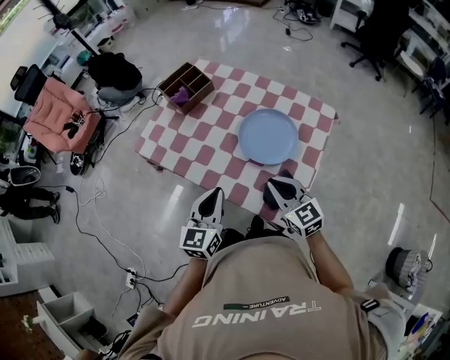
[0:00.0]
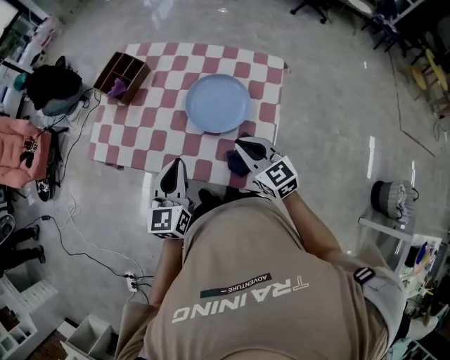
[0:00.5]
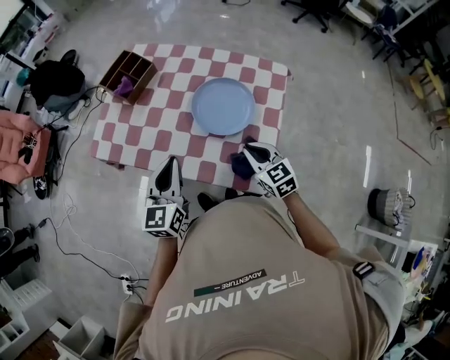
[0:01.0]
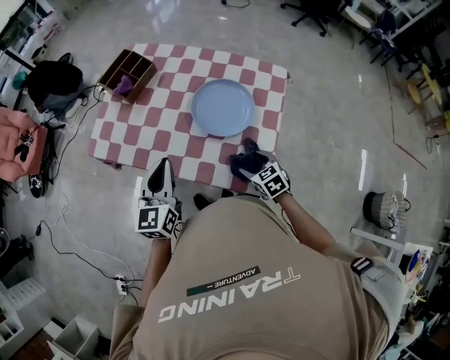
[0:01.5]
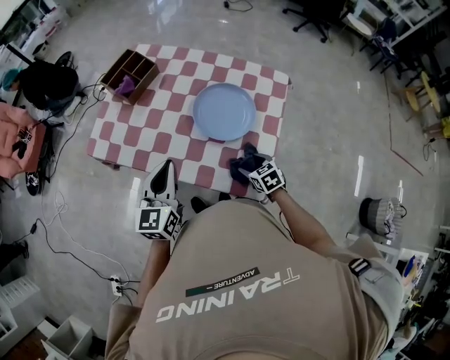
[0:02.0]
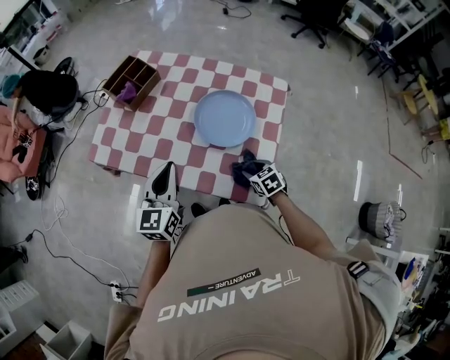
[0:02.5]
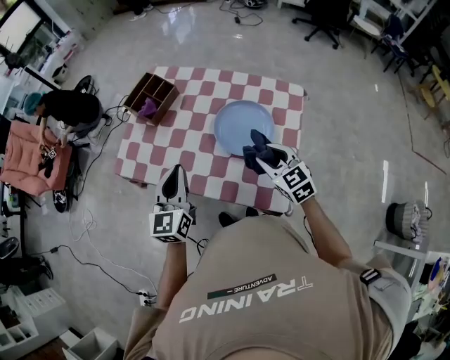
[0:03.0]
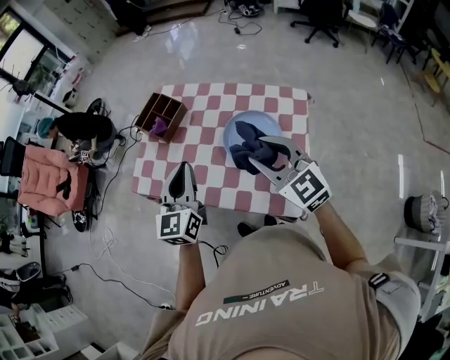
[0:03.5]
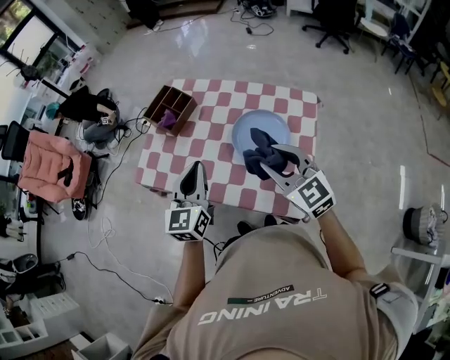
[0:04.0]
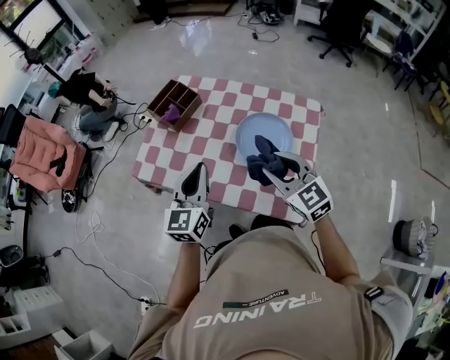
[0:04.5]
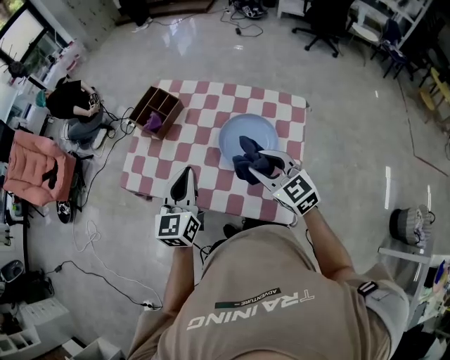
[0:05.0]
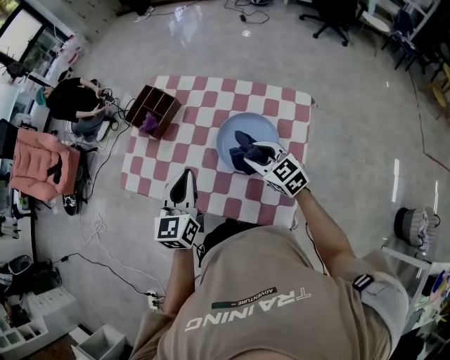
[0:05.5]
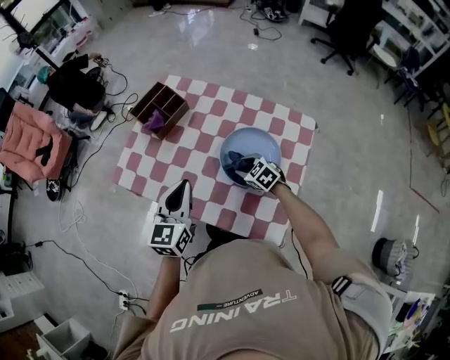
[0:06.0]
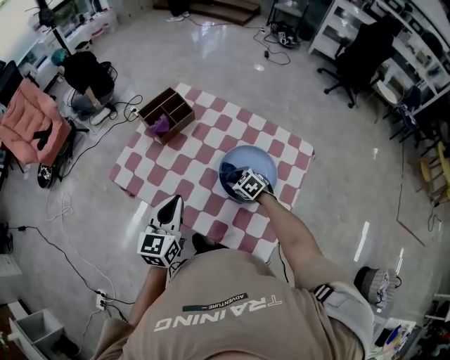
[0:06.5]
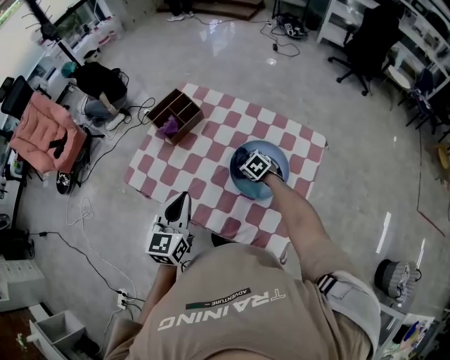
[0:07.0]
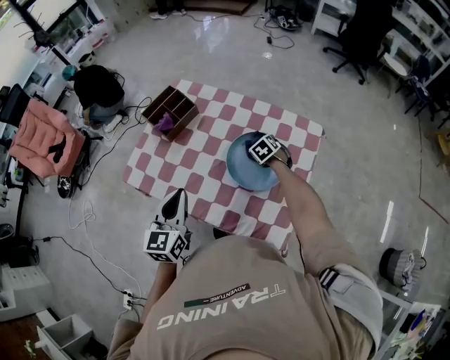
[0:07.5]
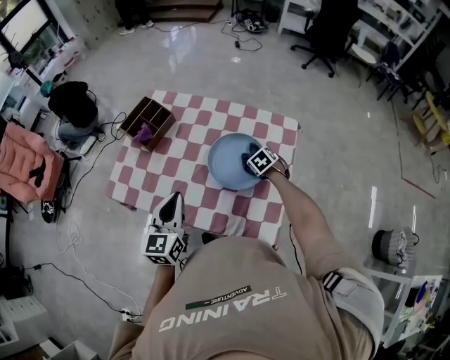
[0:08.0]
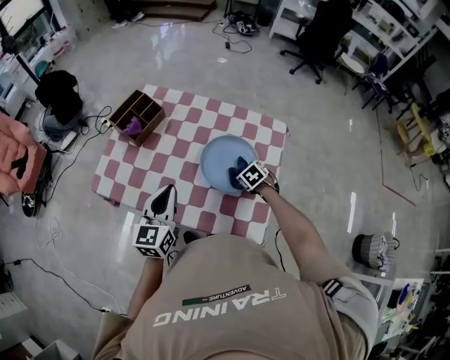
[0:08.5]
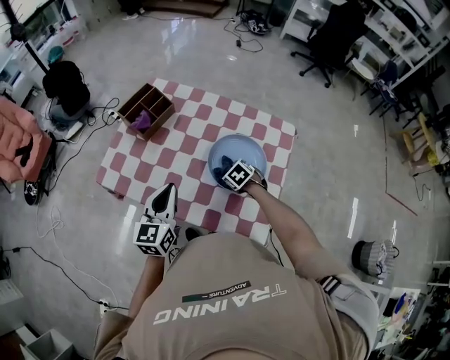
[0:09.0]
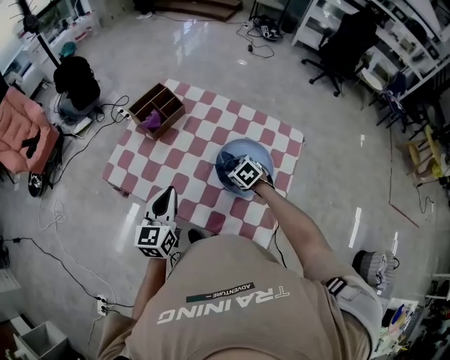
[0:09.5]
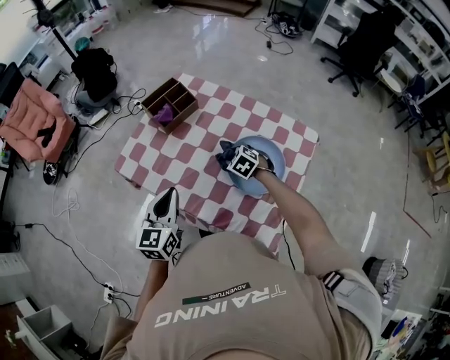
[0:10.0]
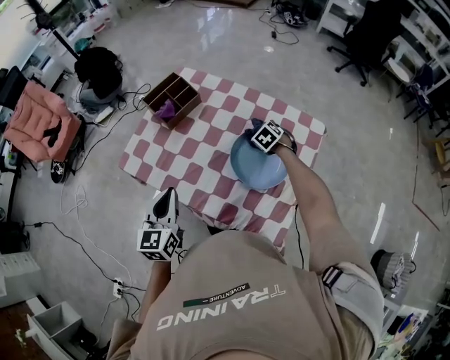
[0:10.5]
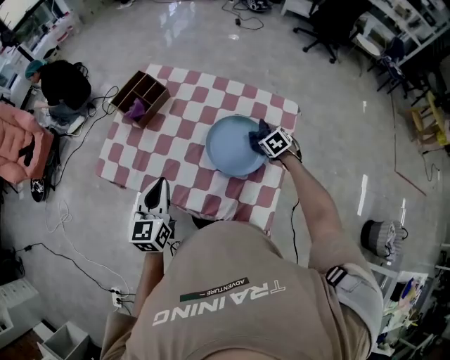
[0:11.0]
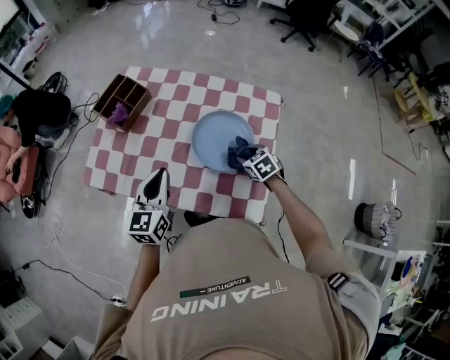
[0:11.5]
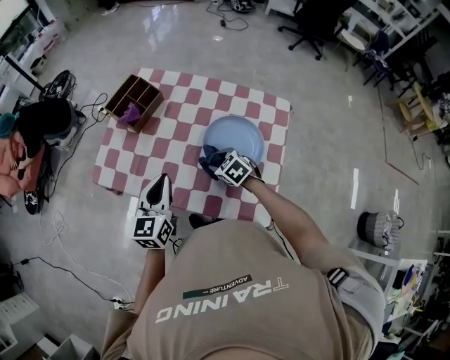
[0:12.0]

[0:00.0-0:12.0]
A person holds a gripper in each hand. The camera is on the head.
0:00.0 to 0:02.0: The left gripper travels forward by some 5 cm; the right gripper is displaced downward by some 20 cm, tips its fingers downward by approximately 40 degrees, and opens up.
0:02.0 to 0:04.0: The left gripper goes some 10 cm upward and forward. The right gripper is displaced upward by about 30 cm, tips its fingers upward by approximately 40 degrees, and closes its fingers.
0:04.0 to 0:06.0: The right gripper is displaced downward and forward by approximately 30 cm, and angles its fingers downward, by roughly 40 degrees. Meanwhile the left gripper goes roughly 5 cm downward.
0:06.0 to 0:08.0: The right gripper moves to the right, approximately 15 cm, and rotates approximately 30 degrees.
0:08.0 to 0:10.0: The right gripper travels to the left by about 20 cm, and swivels some 30 degrees. Meanwhile the left gripper heads to the left, covering roughly 5 cm.
0:10.0 to 0:12.0: The right gripper goes some 10 cm backward, reaches some 20 cm to the right, then returns, and swivels some 20 degrees.

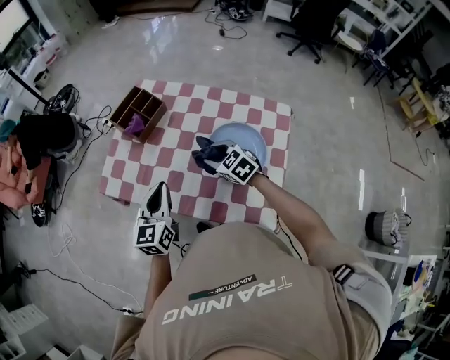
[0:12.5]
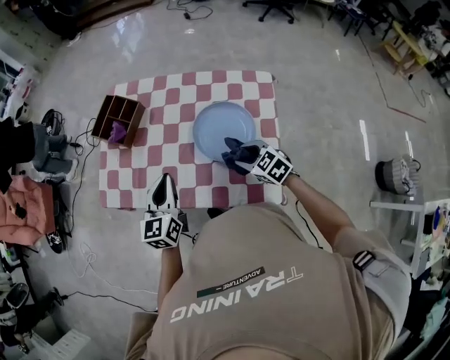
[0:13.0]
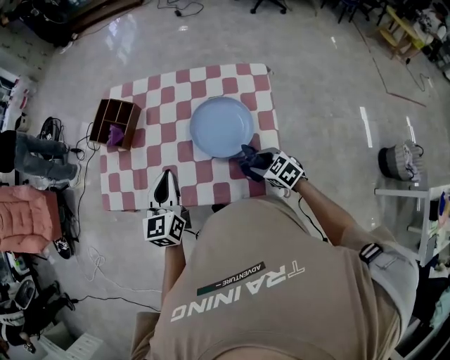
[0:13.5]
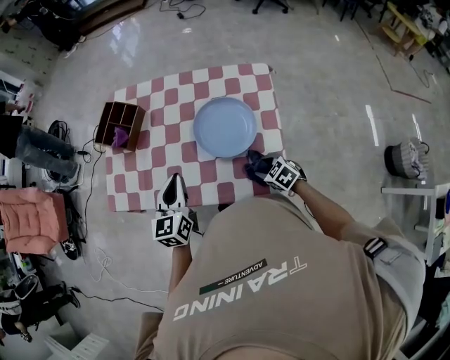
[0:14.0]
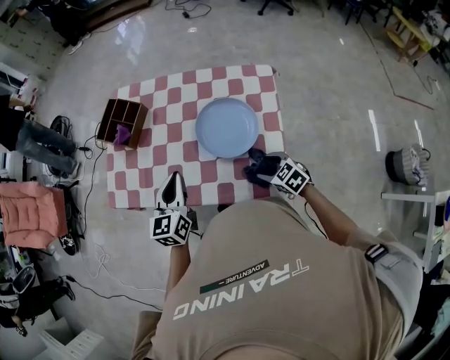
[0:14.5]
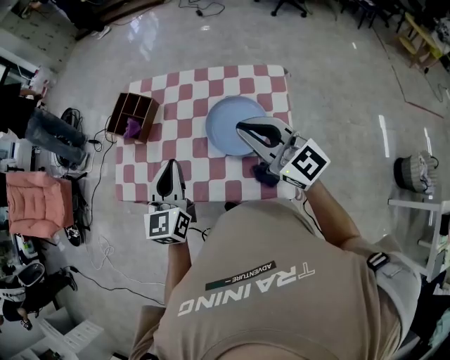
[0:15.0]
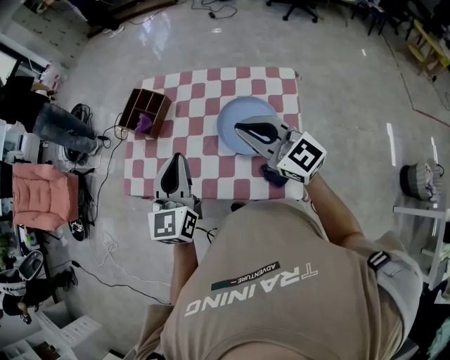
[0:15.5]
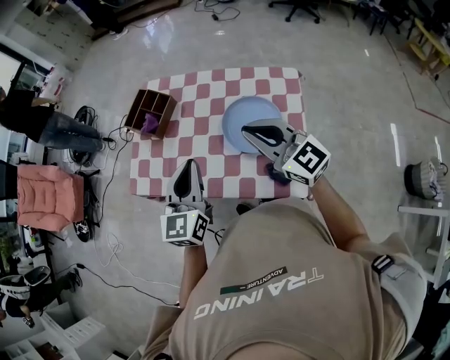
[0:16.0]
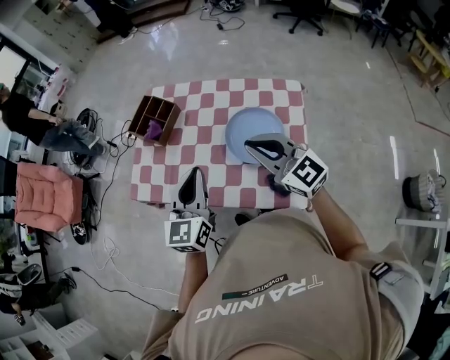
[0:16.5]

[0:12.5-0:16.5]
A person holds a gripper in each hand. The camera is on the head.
0:12.5 to 0:14.5: The right gripper shifts roughly 25 cm backward, to the right and downward, and turns by about 20 degrees, while the left gripper shifts some 5 cm to the right.
0:14.5 to 0:16.5: The left gripper heads upward, covering roughly 10 cm, while the right gripper heads upward, covering about 30 cm, angles its fingers upward, by some 50 degrees, and closes its fingers.

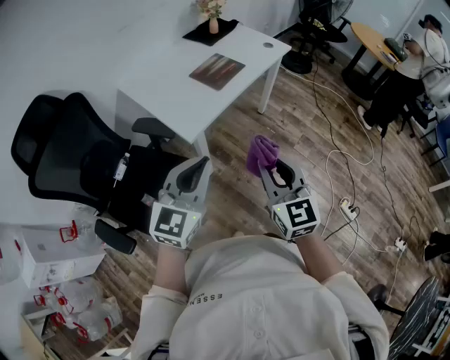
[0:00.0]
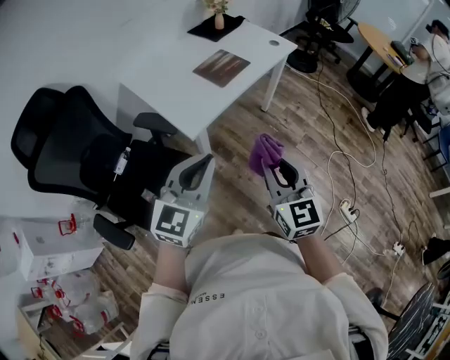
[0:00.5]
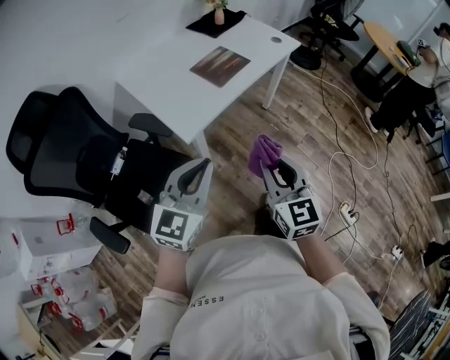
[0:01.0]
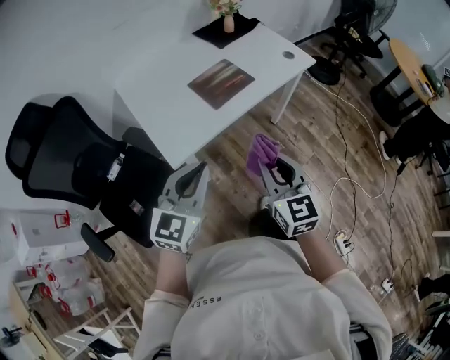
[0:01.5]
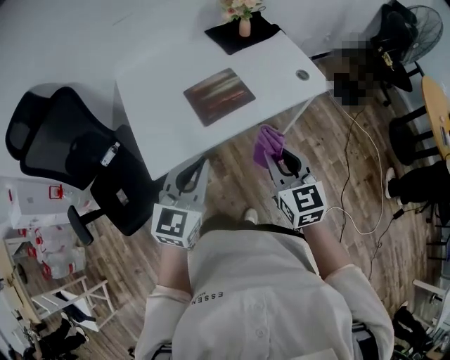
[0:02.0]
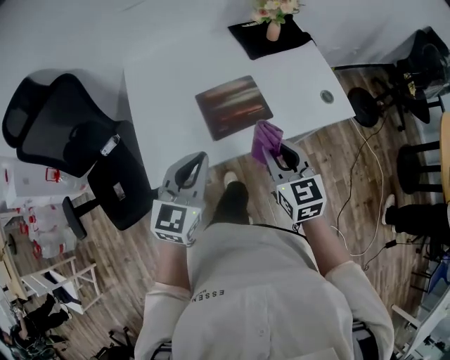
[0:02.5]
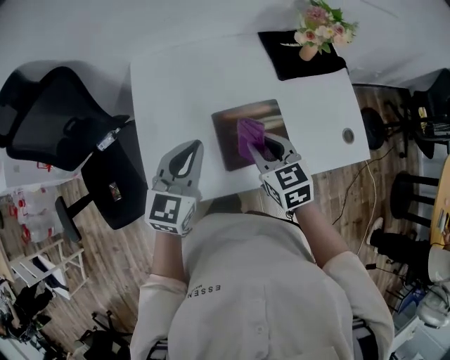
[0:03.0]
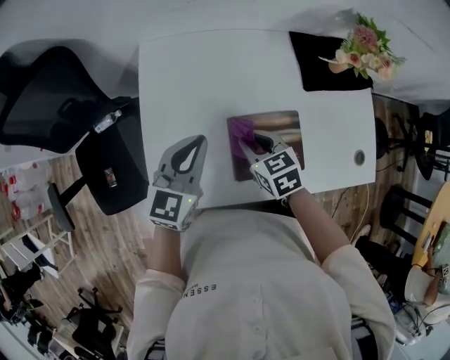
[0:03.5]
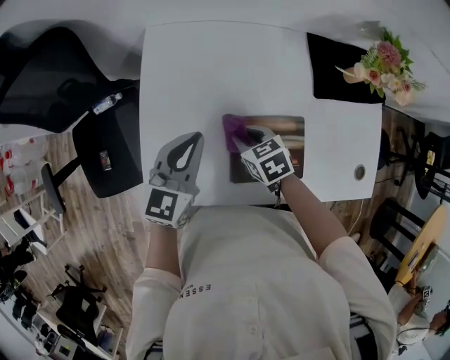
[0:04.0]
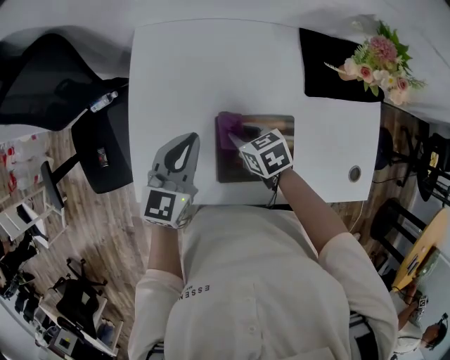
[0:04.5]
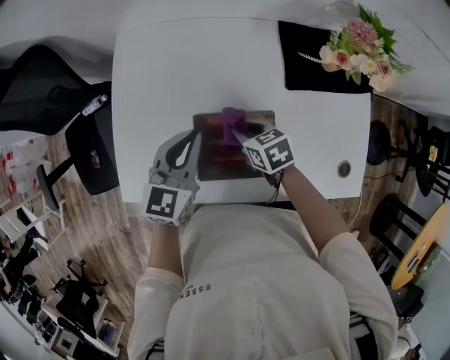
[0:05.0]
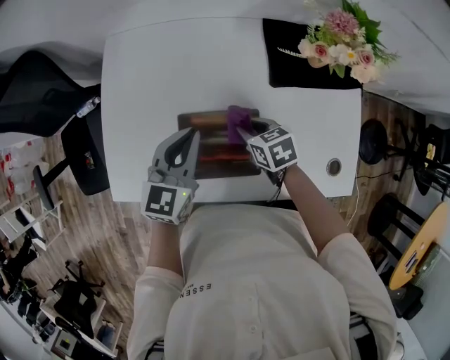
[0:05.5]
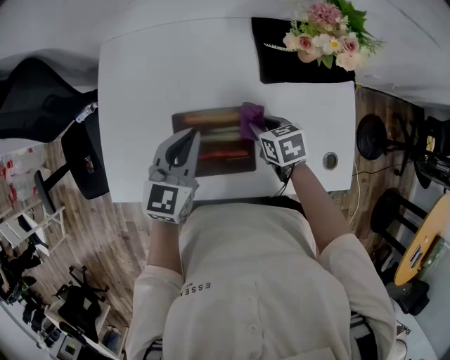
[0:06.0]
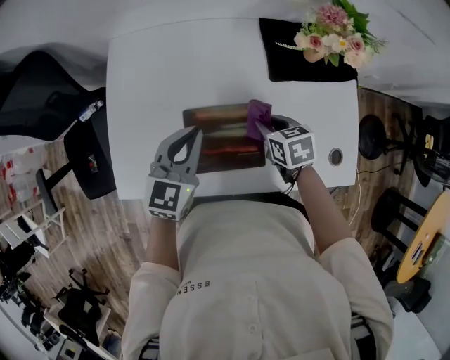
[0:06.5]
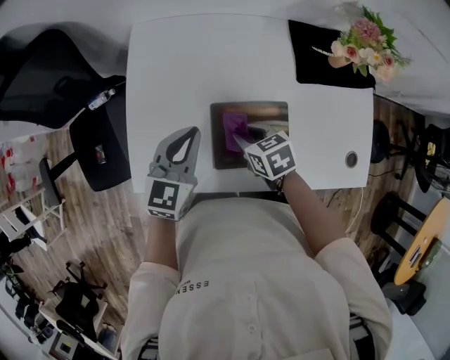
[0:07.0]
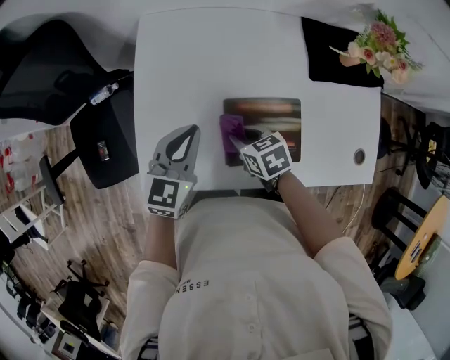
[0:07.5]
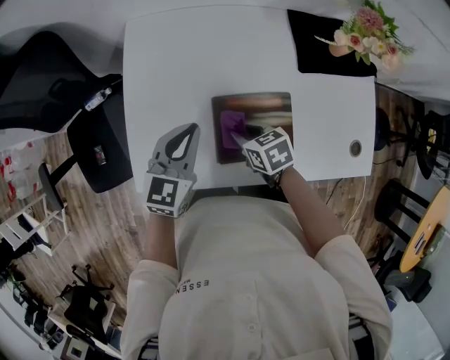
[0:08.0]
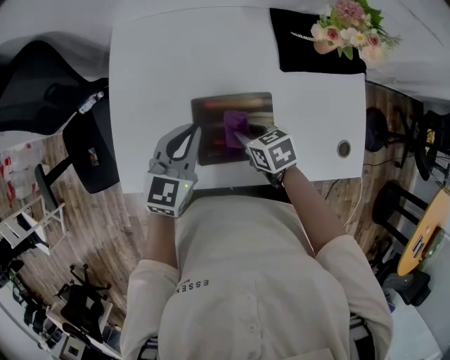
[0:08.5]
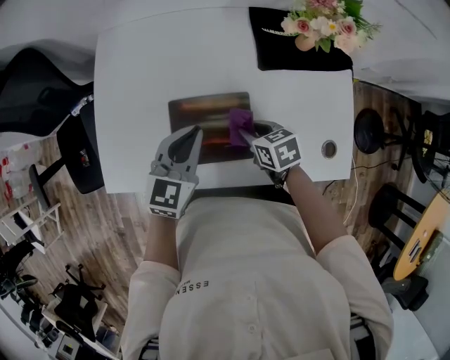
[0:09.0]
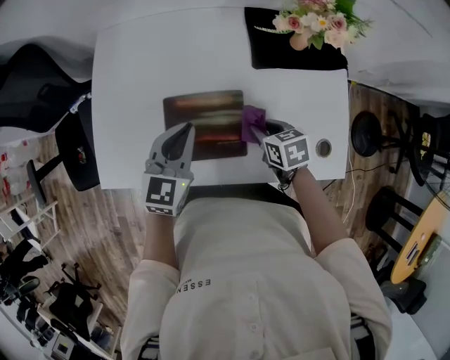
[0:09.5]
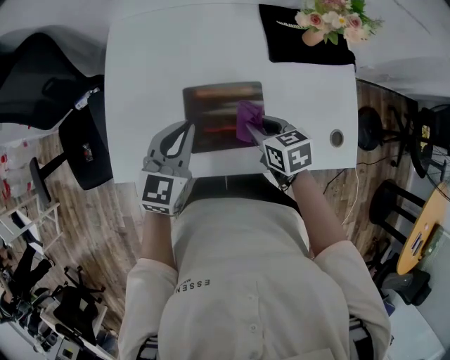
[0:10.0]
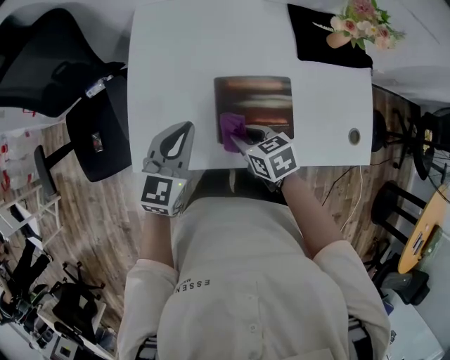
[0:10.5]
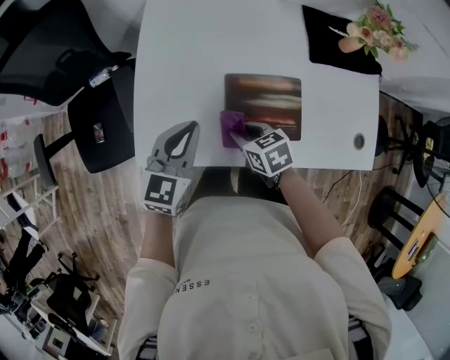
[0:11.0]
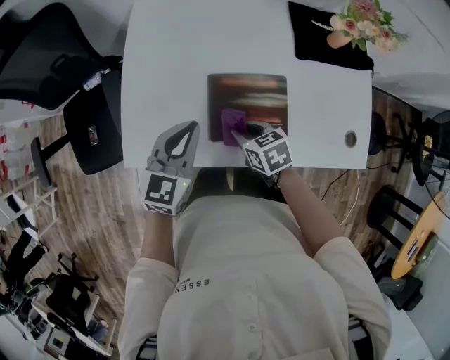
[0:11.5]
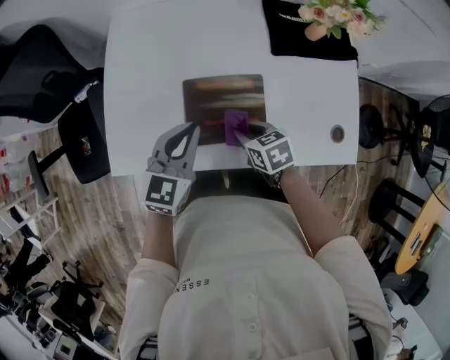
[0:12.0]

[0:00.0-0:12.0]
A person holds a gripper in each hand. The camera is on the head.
0:00.0 to 0:02.0: The two grippers go about 35 cm forward and to the right. The left gripper changes its angle by roughly 30 degrees, while the right gripper rotates approximately 20 degrees.
0:02.0 to 0:04.0: The left gripper ends up about 40 cm from where it was, and changes its angle by approximately 30 degrees; the right gripper shifts by roughly 50 cm, and angles its fingers downward, by about 40 degrees.
0:04.0 to 0:06.0: Both grippers travel together to the right, some 20 cm.
0:06.0 to 0:08.0: The grippers both shift to the left by roughly 15 cm.
0:08.0 to 0:10.0: The left gripper is displaced to the right by approximately 5 cm, while the right gripper travels to the right by roughly 10 cm.
0:10.0 to 0:12.0: The left gripper goes to the left and returns, approximately 10 cm each way. The right gripper travels to the left and back again, some 15 cm each way.
